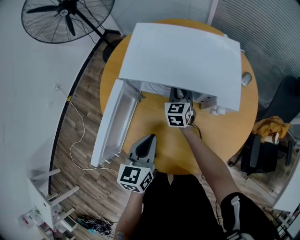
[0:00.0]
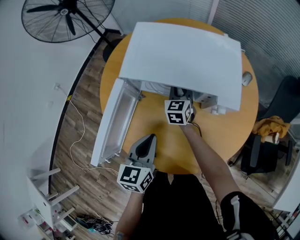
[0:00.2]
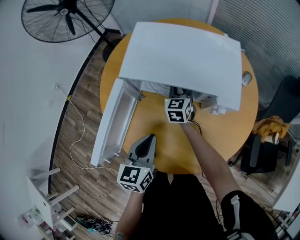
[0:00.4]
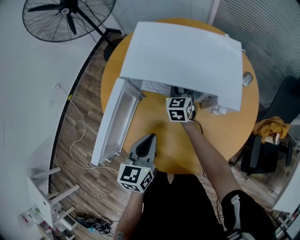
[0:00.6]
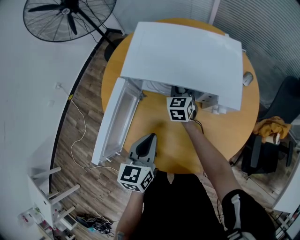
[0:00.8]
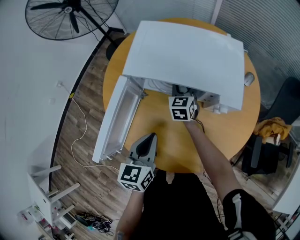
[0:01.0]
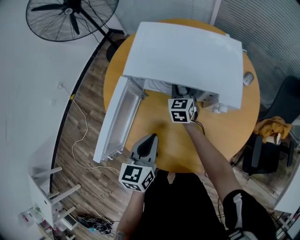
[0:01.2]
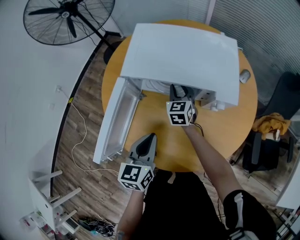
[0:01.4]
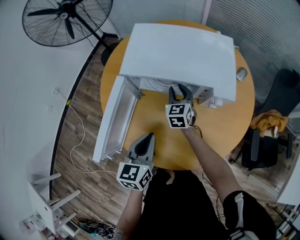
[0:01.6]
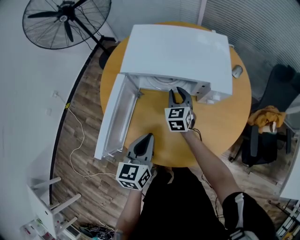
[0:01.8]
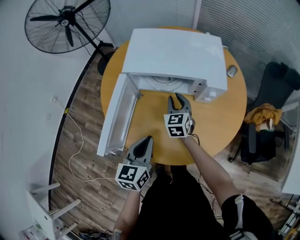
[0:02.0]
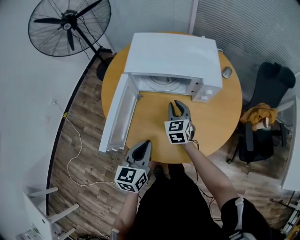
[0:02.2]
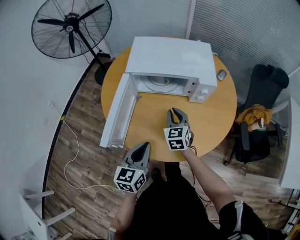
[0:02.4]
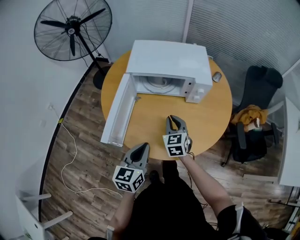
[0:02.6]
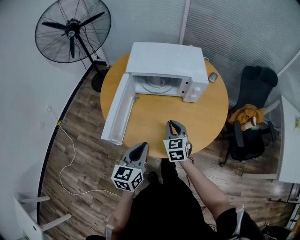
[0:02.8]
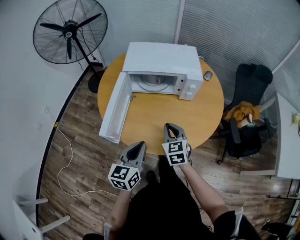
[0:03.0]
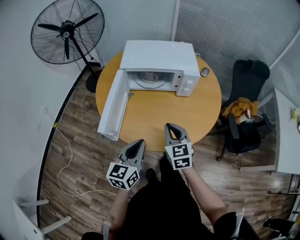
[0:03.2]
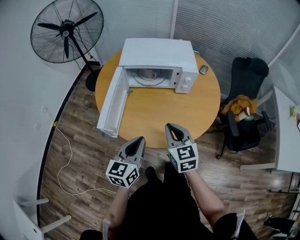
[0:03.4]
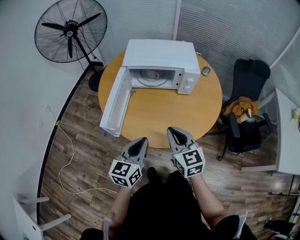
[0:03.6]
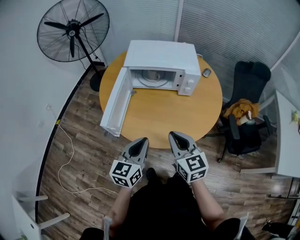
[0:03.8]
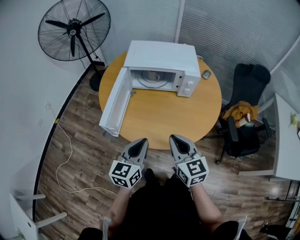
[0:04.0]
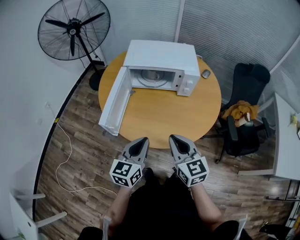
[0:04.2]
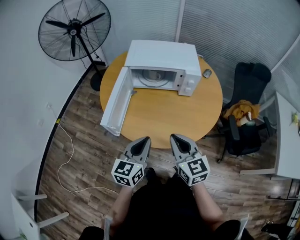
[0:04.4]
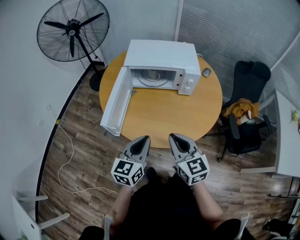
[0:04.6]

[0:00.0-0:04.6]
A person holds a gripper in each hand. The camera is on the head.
0:00.0 to 0:01.6: There are only small adjustments of the grippers.
0:01.6 to 0:03.0: The left gripper is displaced backward by approximately 20 cm; the right gripper is displaced backward by about 30 cm, and closes its fingers.
0:03.0 to 0:04.6: The right gripper heads backward and upward, covering roughly 15 cm.

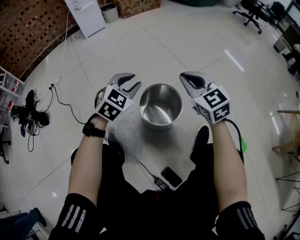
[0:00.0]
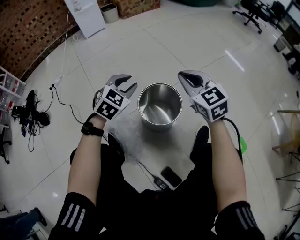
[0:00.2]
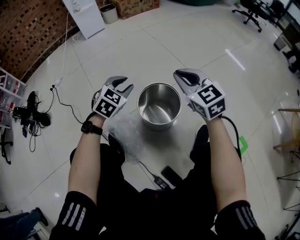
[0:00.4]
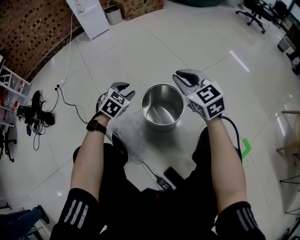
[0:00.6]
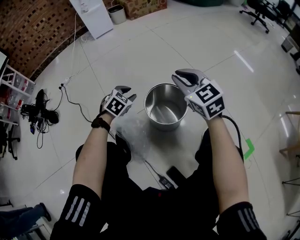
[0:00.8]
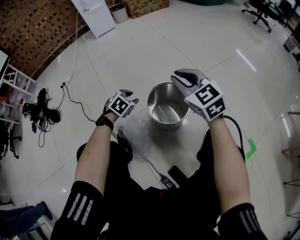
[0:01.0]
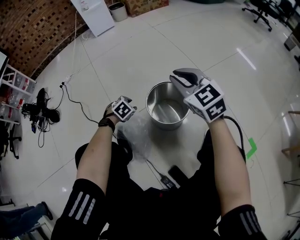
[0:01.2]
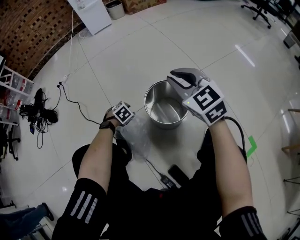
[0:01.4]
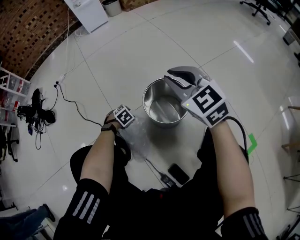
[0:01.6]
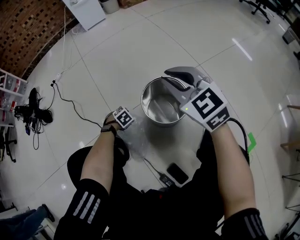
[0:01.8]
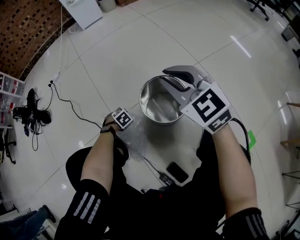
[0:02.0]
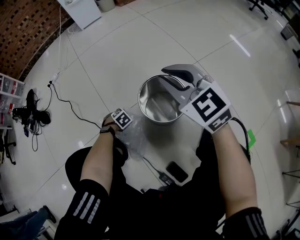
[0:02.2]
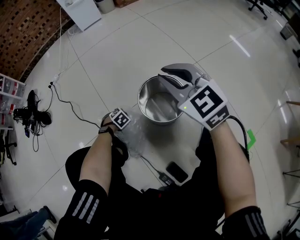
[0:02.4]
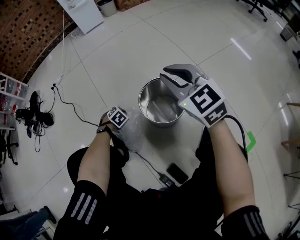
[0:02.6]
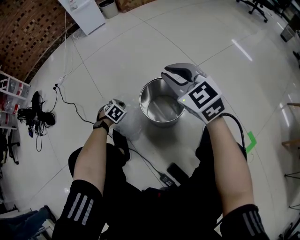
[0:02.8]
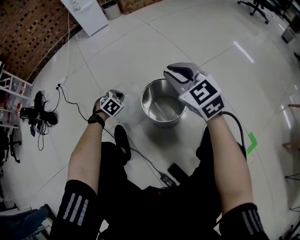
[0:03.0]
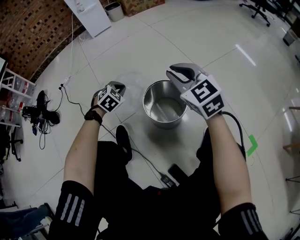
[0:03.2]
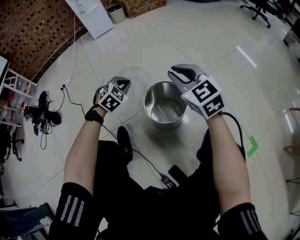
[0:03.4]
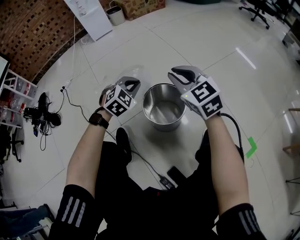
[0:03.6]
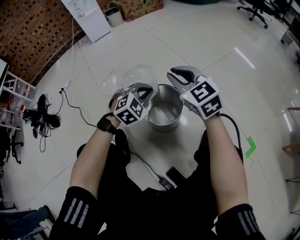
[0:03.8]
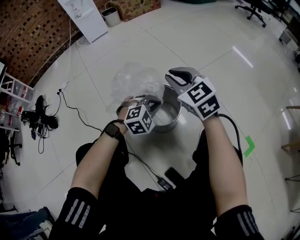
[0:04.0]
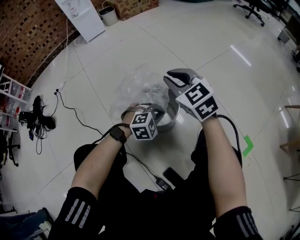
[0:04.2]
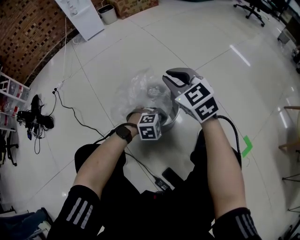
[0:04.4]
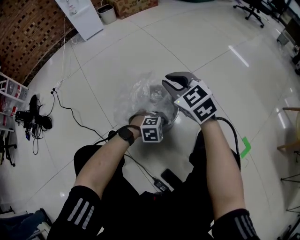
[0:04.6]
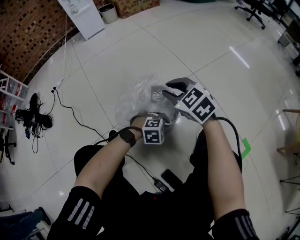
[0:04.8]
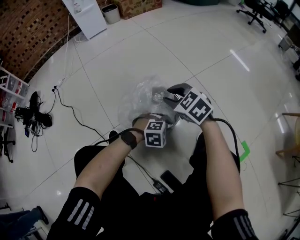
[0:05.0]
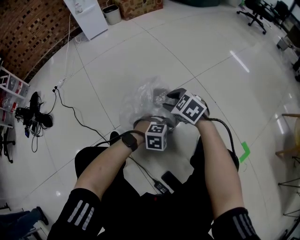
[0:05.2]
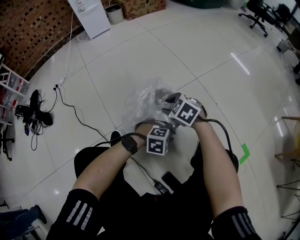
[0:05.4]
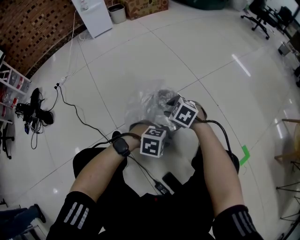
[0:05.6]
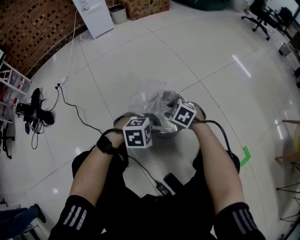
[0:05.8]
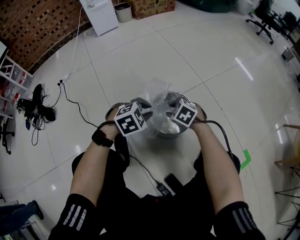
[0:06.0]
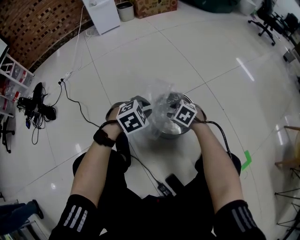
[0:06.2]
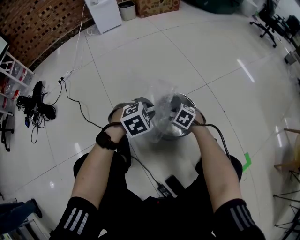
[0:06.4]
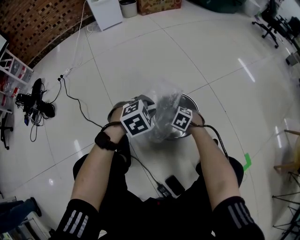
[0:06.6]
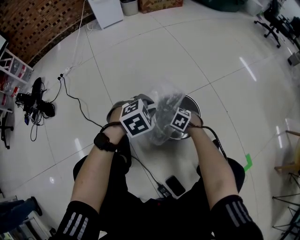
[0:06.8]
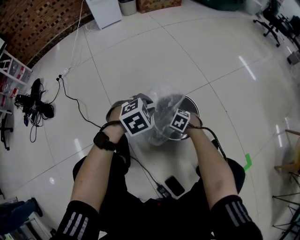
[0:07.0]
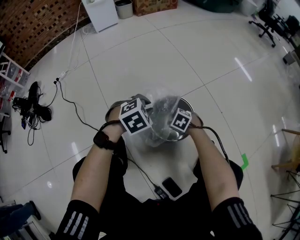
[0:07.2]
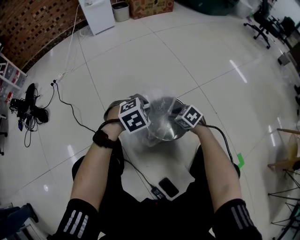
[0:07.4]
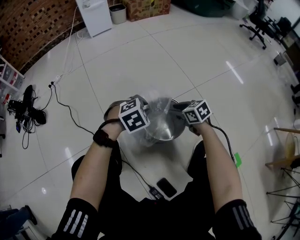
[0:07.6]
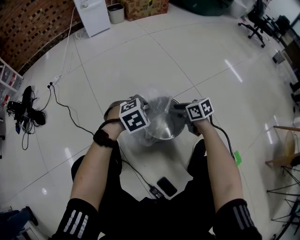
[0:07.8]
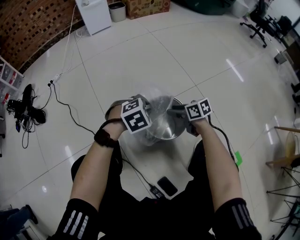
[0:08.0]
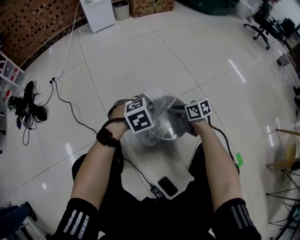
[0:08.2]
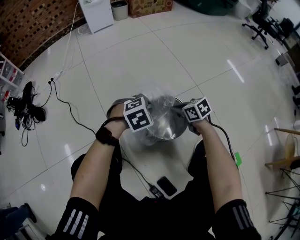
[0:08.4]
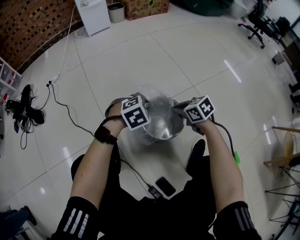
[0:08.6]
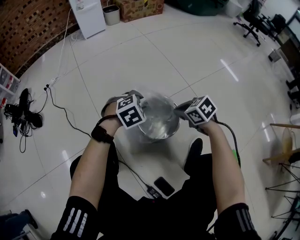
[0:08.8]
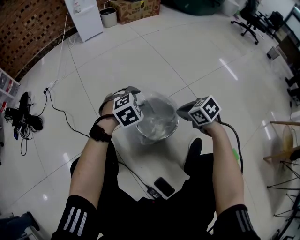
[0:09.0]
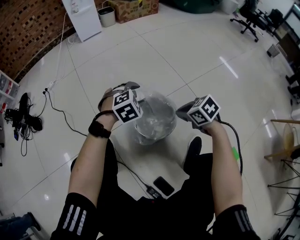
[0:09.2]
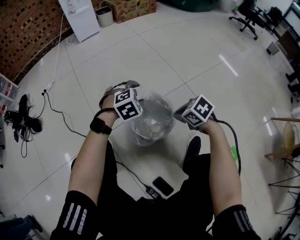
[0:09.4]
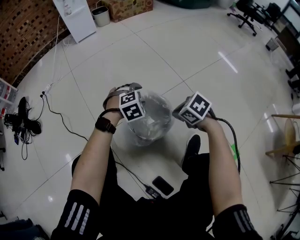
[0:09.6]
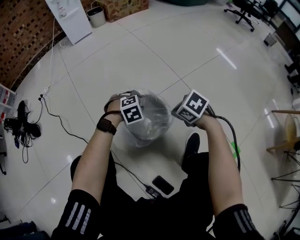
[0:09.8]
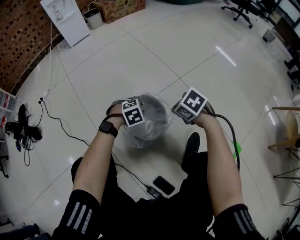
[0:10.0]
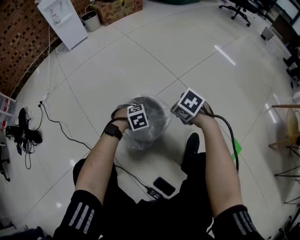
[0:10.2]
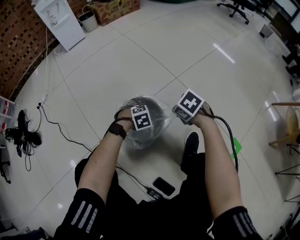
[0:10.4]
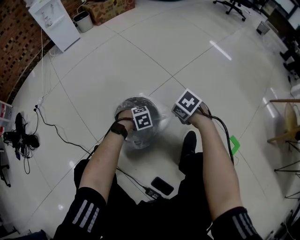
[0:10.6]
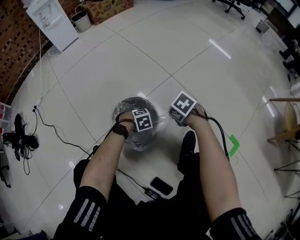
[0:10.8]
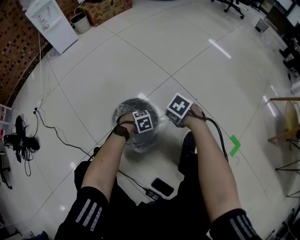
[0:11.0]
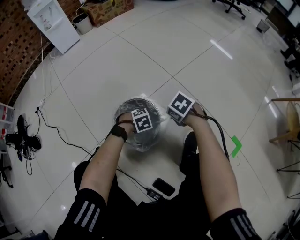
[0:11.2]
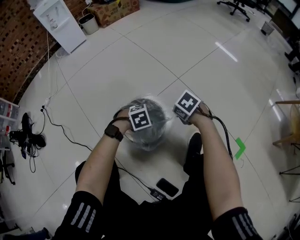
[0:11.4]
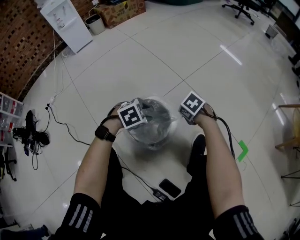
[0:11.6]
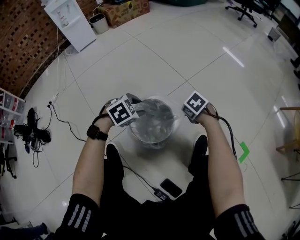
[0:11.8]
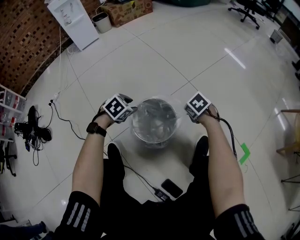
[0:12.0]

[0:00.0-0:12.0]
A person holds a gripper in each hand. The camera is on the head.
0:00.0 to 0:01.6: The right gripper moves roughly 5 cm. Meanwhile the left gripper goes roughly 35 cm downward, and points its fingers some 50 degrees further downward.
0:01.6 to 0:03.0: The left gripper shifts approximately 15 cm upward, and closes its fingers.
0:03.0 to 0:04.4: The left gripper reaches roughly 15 cm upward, then returns, and turns by roughly 40 degrees.
0:04.4 to 0:06.0: The right gripper goes approximately 20 cm downward, points its fingers roughly 40 degrees further downward, and opens up; the left gripper changes place by some 20 cm, and turns by some 20 degrees.
0:06.0 to 0:07.6: The right gripper reaches some 15 cm downward, then returns, and swivels approximately 30 degrees.
0:07.6 to 0:09.0: The right gripper is displaced upward and backward by roughly 10 cm, and closes up; the left gripper opens up.
0:09.0 to 0:10.4: The left gripper goes some 20 cm downward and to the right, rotates approximately 20 degrees, and closes its fingers. The right gripper goes about 10 cm to the right and downward.
0:10.4 to 0:12.0: The left gripper changes place by roughly 15 cm, and turns by roughly 30 degrees, while the right gripper shifts by about 5 cm.

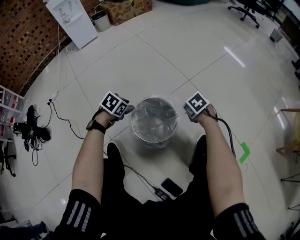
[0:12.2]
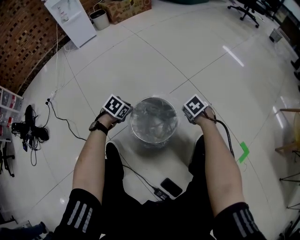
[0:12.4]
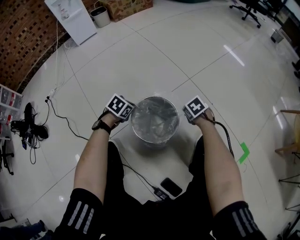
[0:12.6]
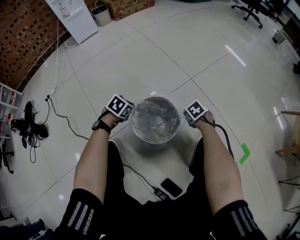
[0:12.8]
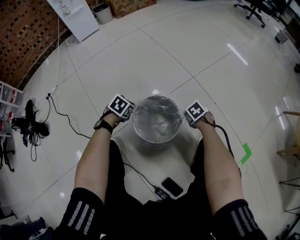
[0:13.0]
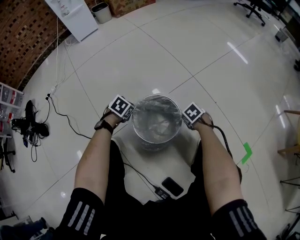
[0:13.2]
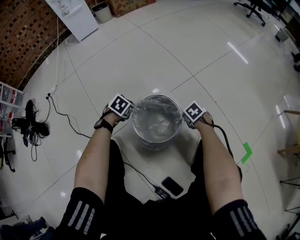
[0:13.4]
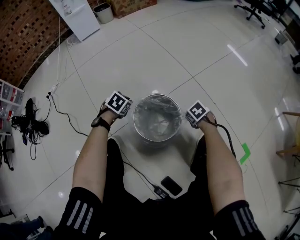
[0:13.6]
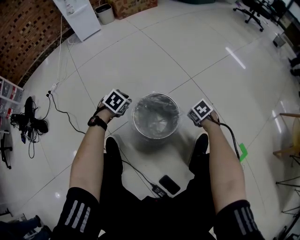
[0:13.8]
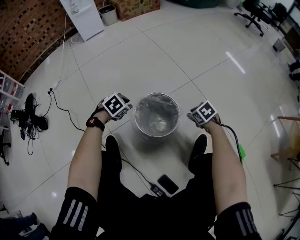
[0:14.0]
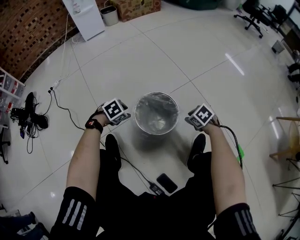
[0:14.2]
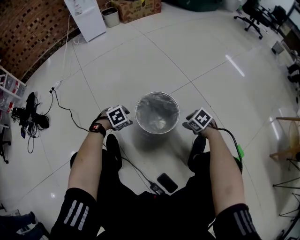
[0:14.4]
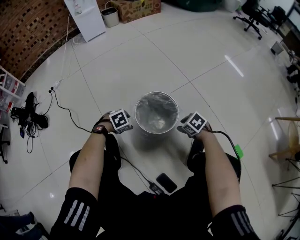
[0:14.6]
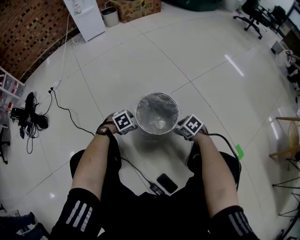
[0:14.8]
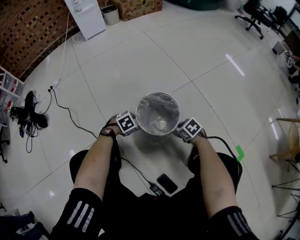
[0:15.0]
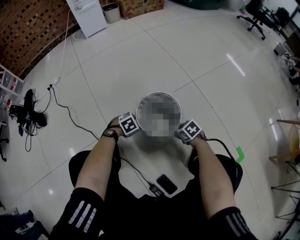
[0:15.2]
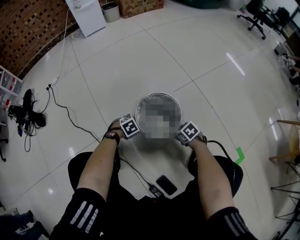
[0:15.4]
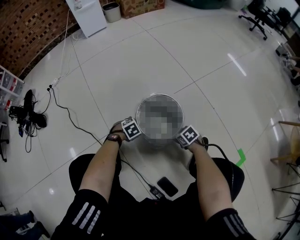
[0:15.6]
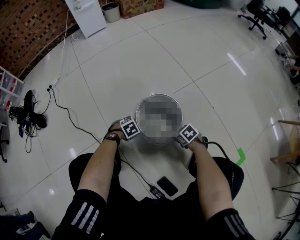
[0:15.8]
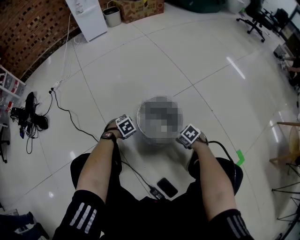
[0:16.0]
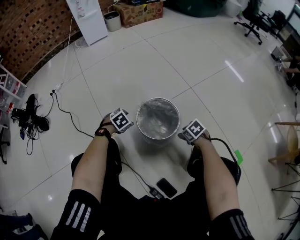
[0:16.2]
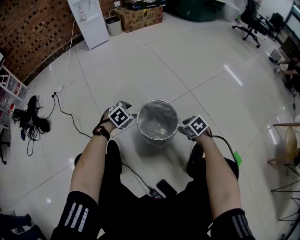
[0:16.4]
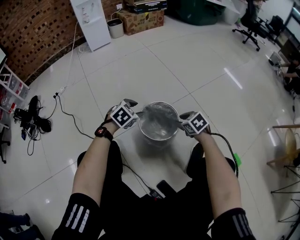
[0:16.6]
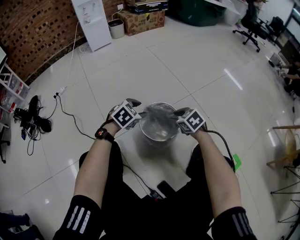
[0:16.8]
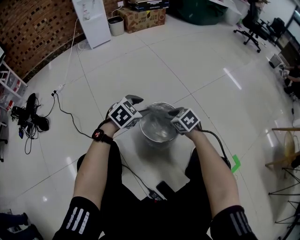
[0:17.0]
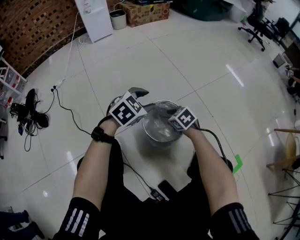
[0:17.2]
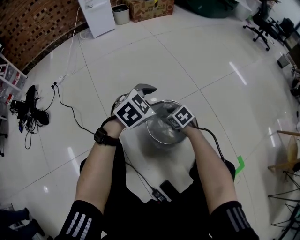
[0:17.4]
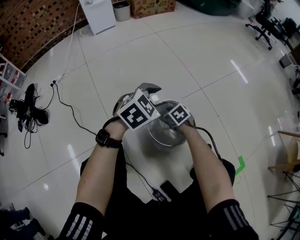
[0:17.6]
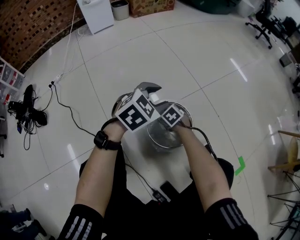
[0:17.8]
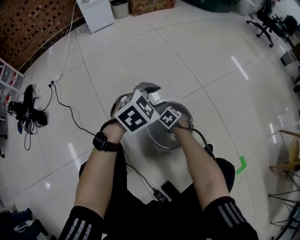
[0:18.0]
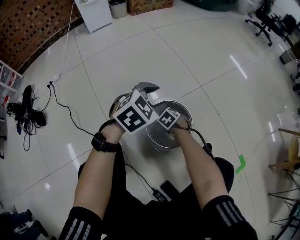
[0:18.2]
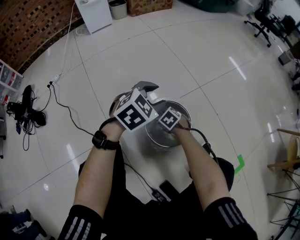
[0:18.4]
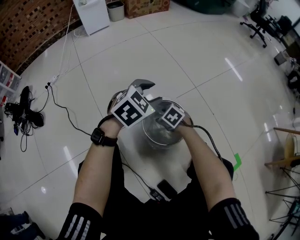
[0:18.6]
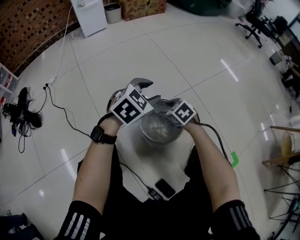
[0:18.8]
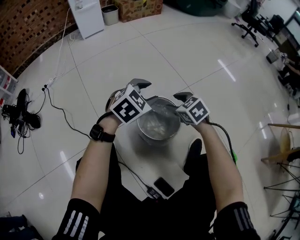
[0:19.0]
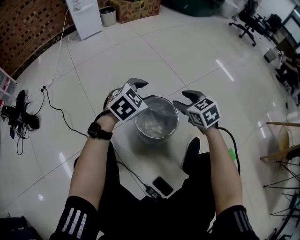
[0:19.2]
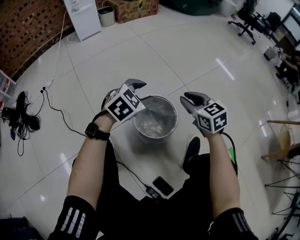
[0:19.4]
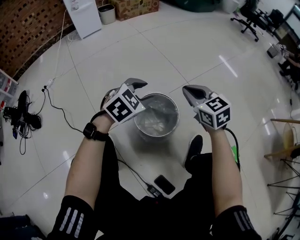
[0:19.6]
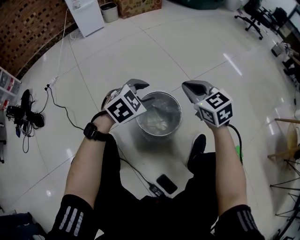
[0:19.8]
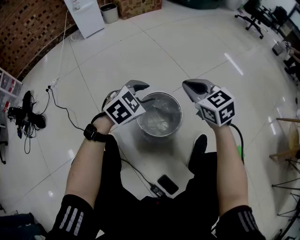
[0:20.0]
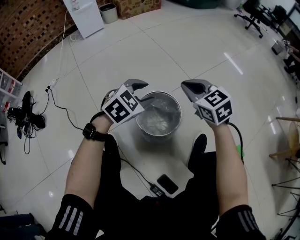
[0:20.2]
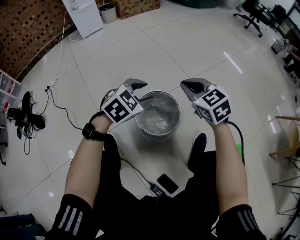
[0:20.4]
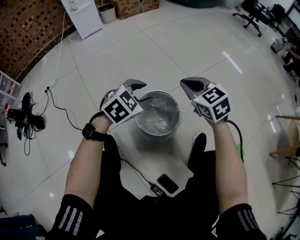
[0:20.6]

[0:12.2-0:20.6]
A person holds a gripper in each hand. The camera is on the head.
0:12.2 to 0:13.6: The right gripper shifts about 10 cm downward, and opens up. Meanwhile the left gripper closes its fingers.
0:13.6 to 0:15.0: The left gripper moves roughly 15 cm, changes its angle by approximately 20 degrees, and opens. The right gripper ends up about 15 cm from where it was.
0:15.0 to 0:16.4: The left gripper is displaced upward by approximately 10 cm. The right gripper shifts some 10 cm upward.
0:16.4 to 0:17.8: The right gripper shifts some 20 cm to the left and forward, while the left gripper heads upward and to the right, covering roughly 15 cm, and swivels approximately 20 degrees.
0:17.8 to 0:19.2: The right gripper travels upward and to the right by approximately 25 cm, and changes its angle by some 30 degrees.
0:19.2 to 0:20.6: The right gripper heads upward, covering some 5 cm, and closes.
